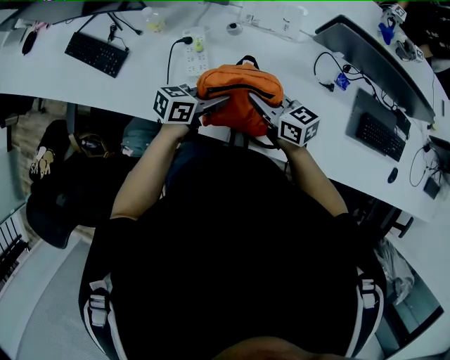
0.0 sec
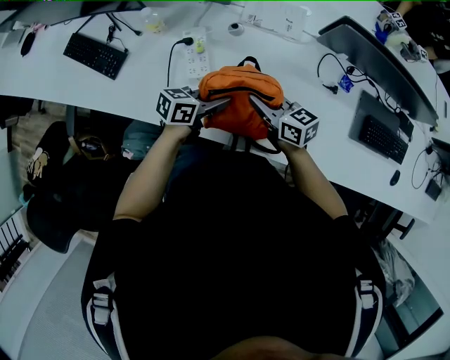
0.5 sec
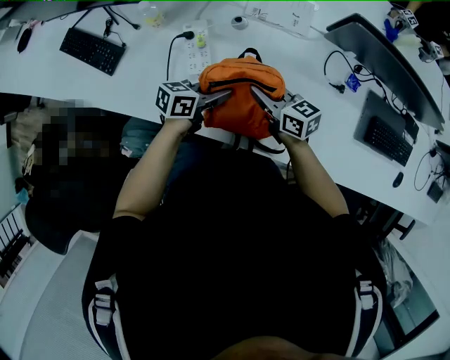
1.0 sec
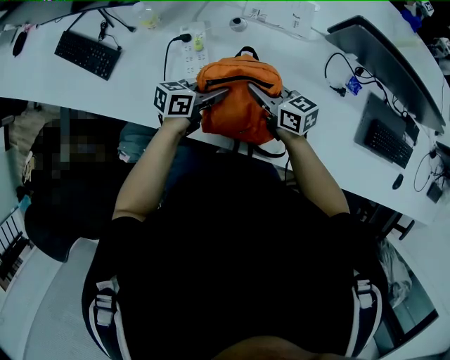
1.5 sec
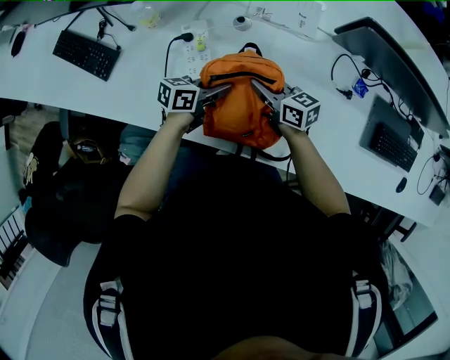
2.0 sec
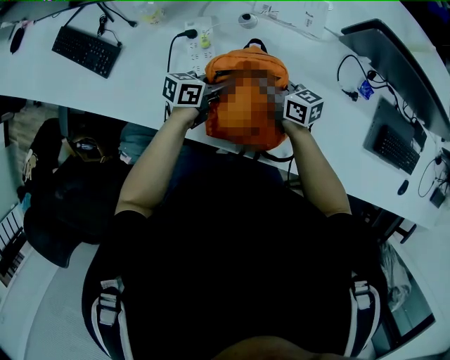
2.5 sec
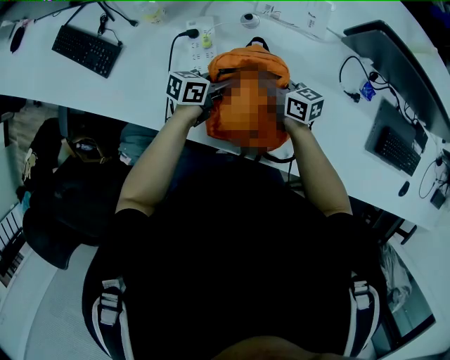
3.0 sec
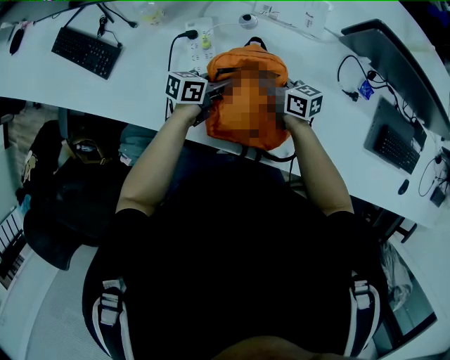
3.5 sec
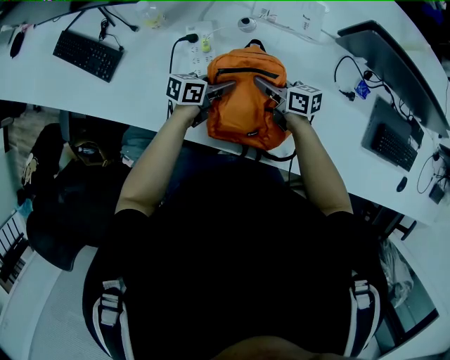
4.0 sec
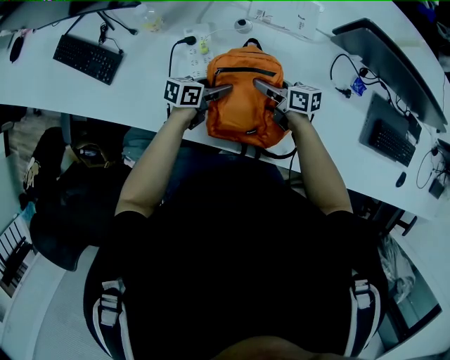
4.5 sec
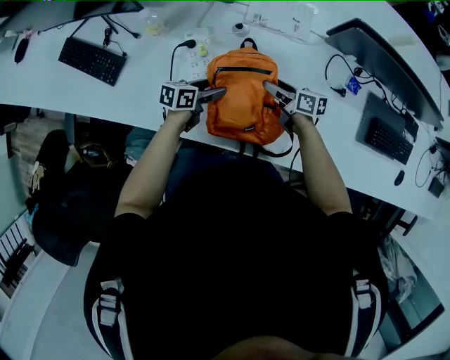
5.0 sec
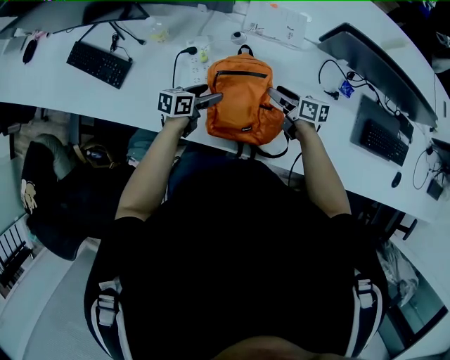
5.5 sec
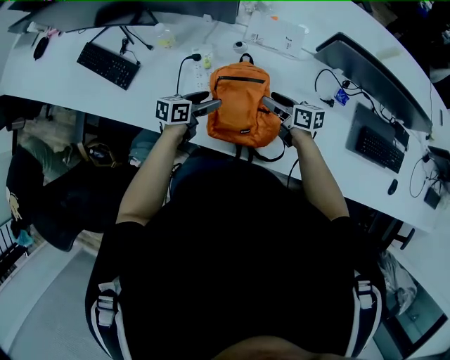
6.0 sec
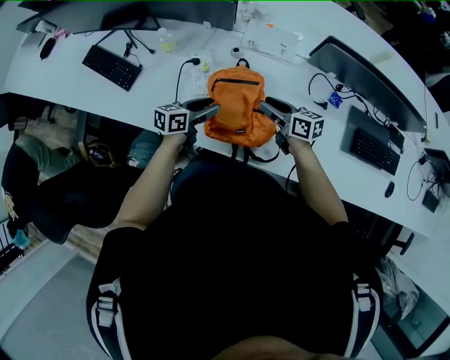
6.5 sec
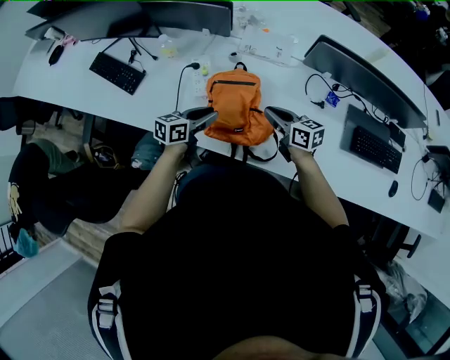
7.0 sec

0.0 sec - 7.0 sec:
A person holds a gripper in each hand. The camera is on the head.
0.0 sec - 2.0 sec: The two grippers go roughly 10 cm downward.
2.0 sec - 3.5 sec: The right gripper shifts by some 5 cm.
3.5 sec - 5.0 sec: The left gripper opens up, while the right gripper shifts by approximately 5 cm, and opens up.
5.0 sec - 7.0 sec: Both grippers move upward and backward, approximately 20 cm. The right gripper turns by about 20 degrees, and closes its fingers. The left gripper closes up.

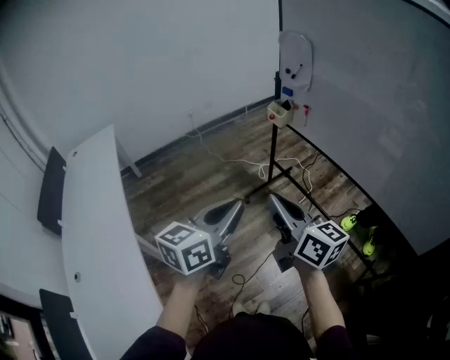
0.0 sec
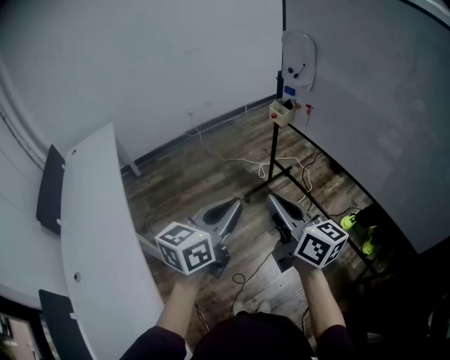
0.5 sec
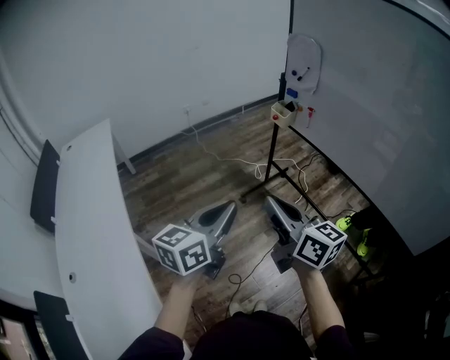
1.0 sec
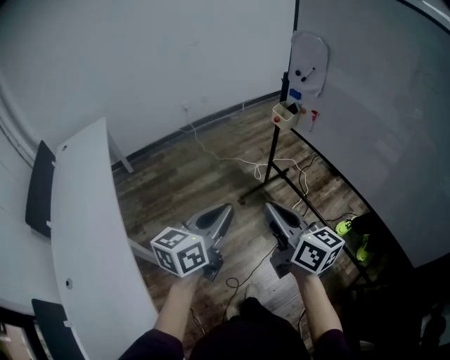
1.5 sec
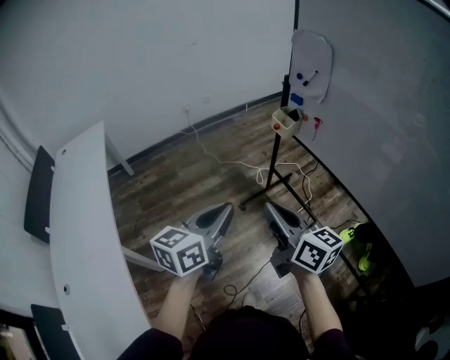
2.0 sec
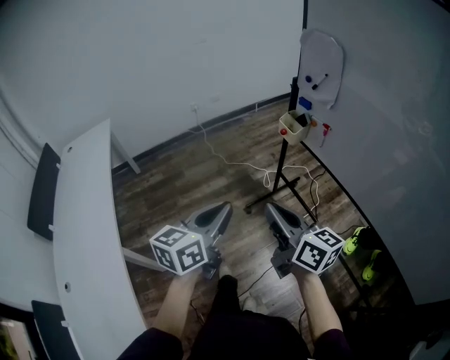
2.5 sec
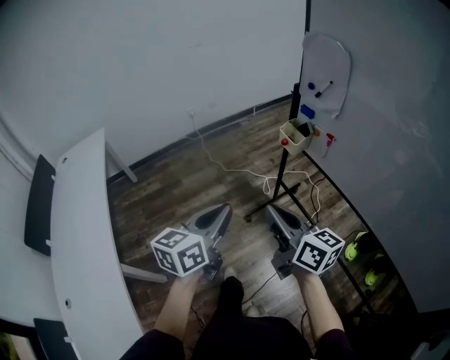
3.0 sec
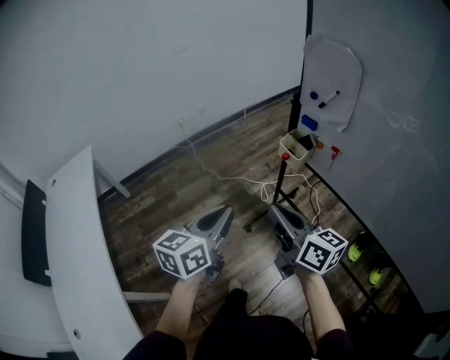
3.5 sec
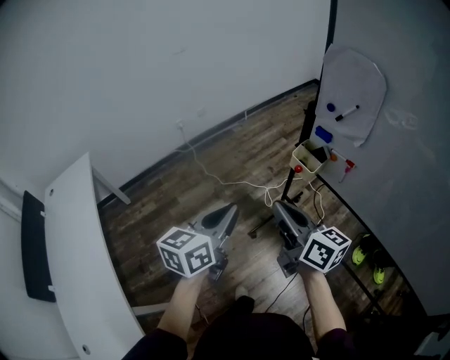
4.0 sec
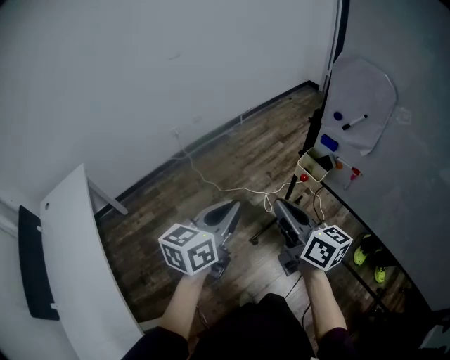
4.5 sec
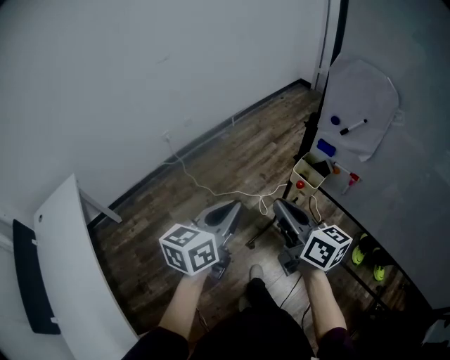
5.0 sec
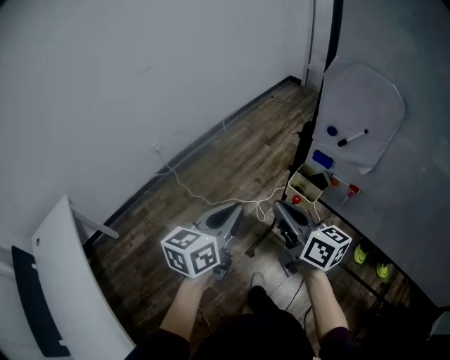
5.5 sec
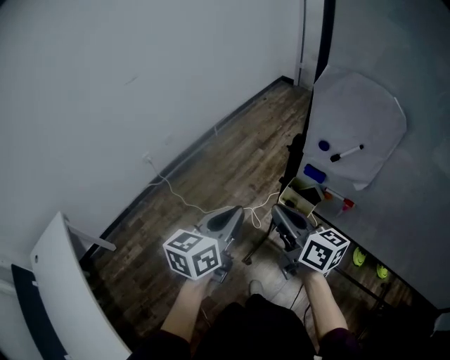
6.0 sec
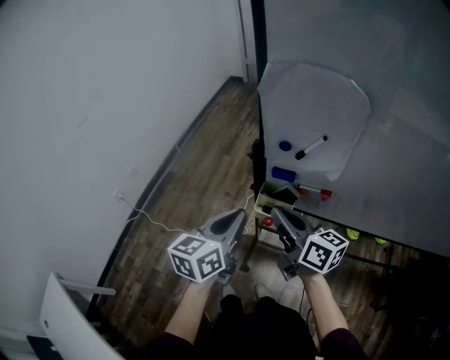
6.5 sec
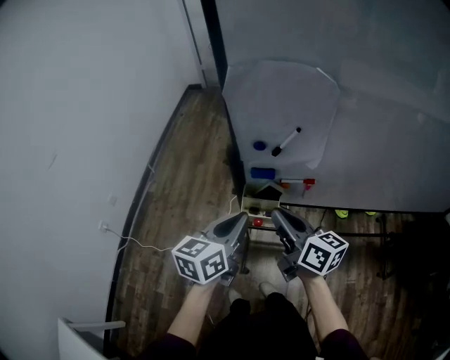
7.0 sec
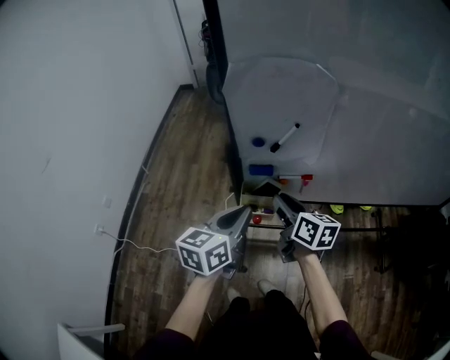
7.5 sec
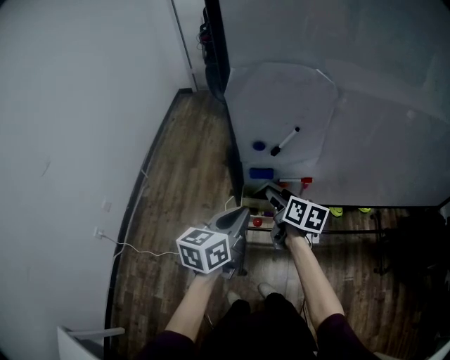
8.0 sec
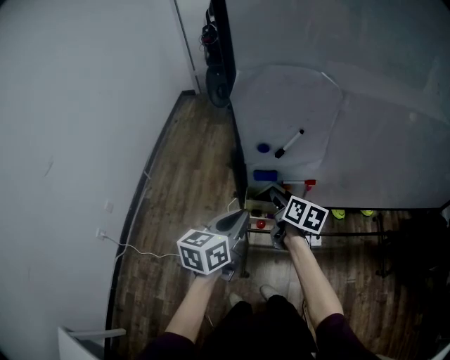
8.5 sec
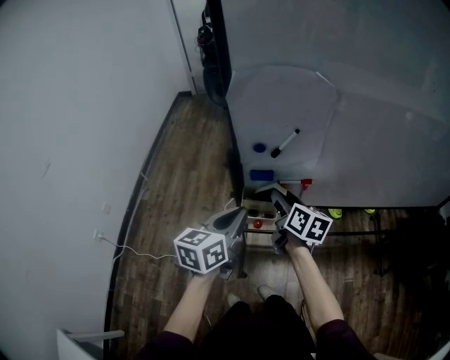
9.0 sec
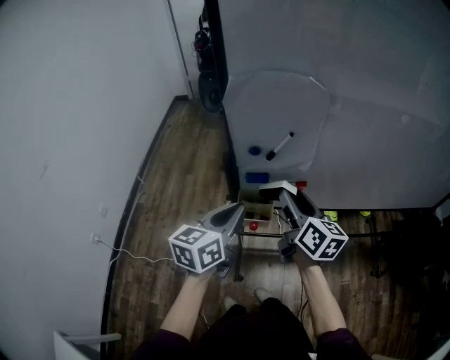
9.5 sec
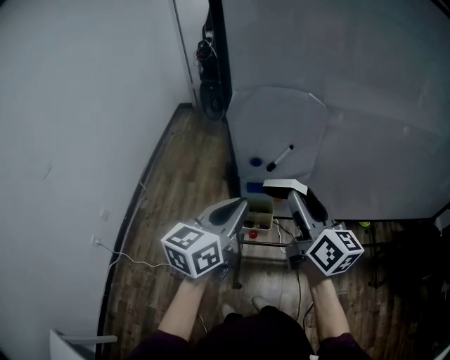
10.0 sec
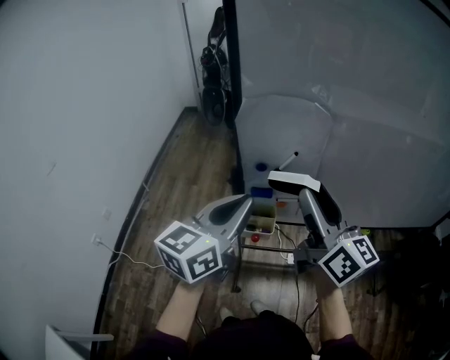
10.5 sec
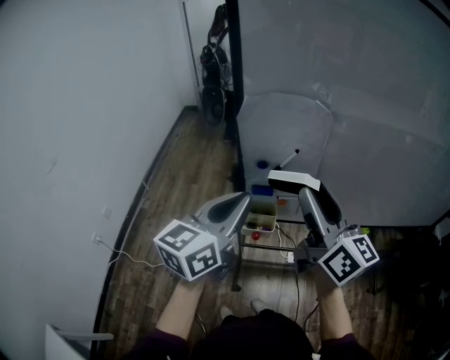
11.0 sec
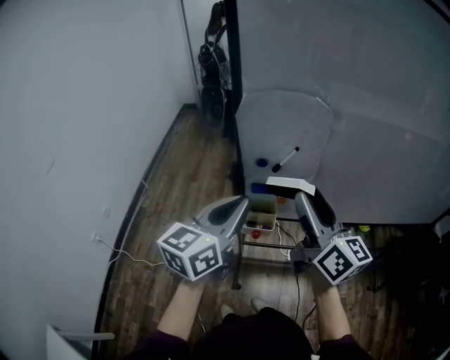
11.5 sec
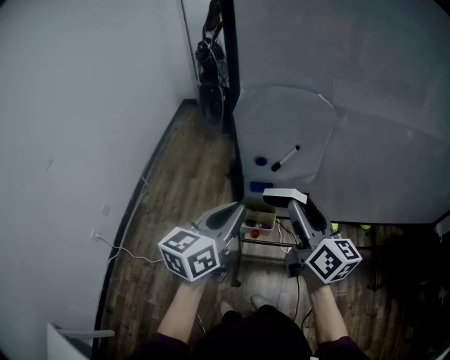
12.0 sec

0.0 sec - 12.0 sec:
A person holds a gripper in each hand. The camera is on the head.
0.0 sec - 2.0 sec: Both grippers travel together forward, roughly 15 cm.
2.0 sec - 4.0 sec: Both grippers travel together forward, about 30 cm.
4.0 sec - 6.0 sec: The grippers both shift forward by some 25 cm.
6.0 sec - 8.0 sec: The left gripper ends up roughly 15 cm from where it was, and rotates roughly 30 degrees, while the right gripper shifts by approximately 20 cm, swivels approximately 50 degrees, and opens its fingers.
8.0 sec - 10.0 sec: The right gripper is displaced upward by about 20 cm, and changes its angle by roughly 30 degrees. The left gripper shifts some 10 cm upward.
10.0 sec - 12.0 sec: The right gripper moves about 10 cm upward and comes back.

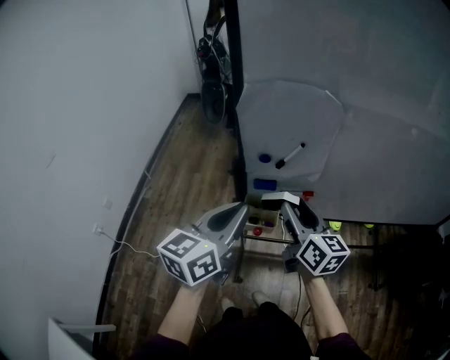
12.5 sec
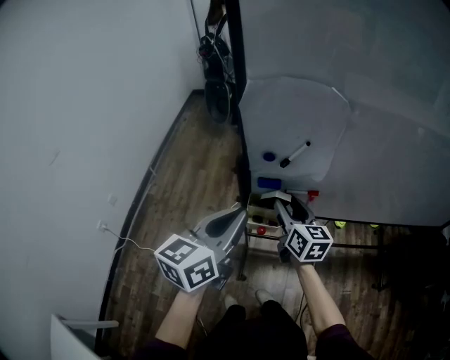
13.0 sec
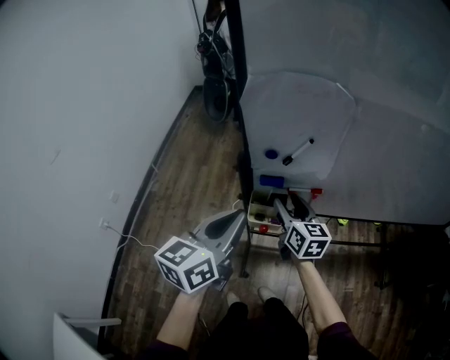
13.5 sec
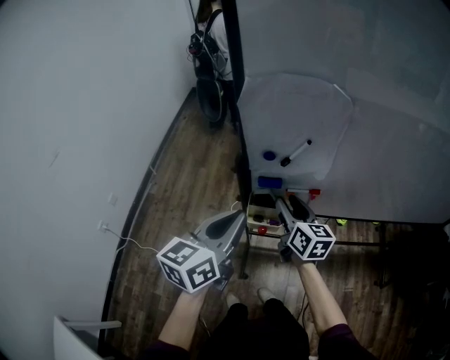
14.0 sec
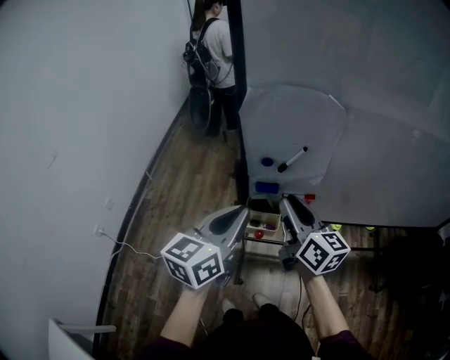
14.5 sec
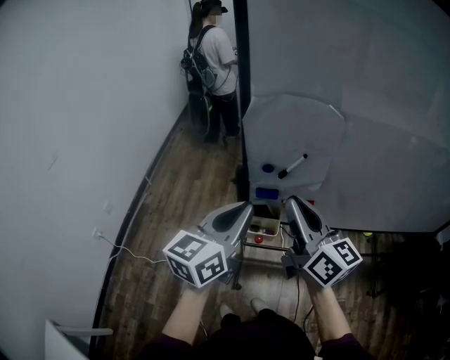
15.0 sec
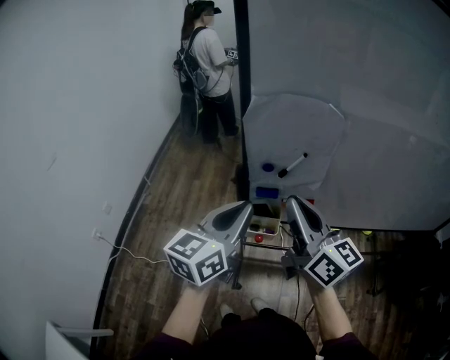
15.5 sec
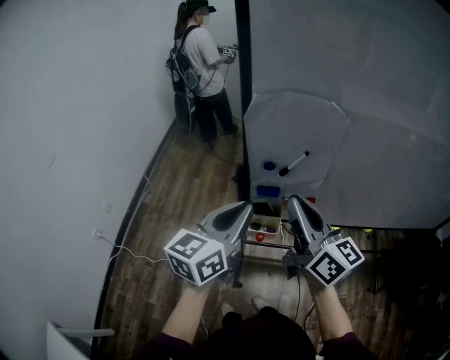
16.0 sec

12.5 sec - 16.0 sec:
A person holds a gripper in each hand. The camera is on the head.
12.5 sec - 14.5 sec: The right gripper moves roughly 10 cm downward and comes back, and closes up.
14.5 sec - 16.0 sec: The right gripper shifts approximately 10 cm upward.

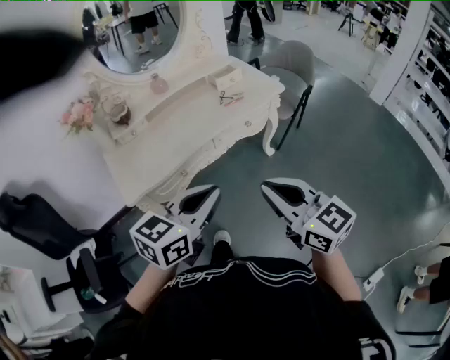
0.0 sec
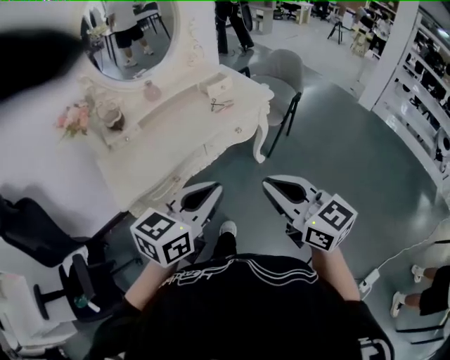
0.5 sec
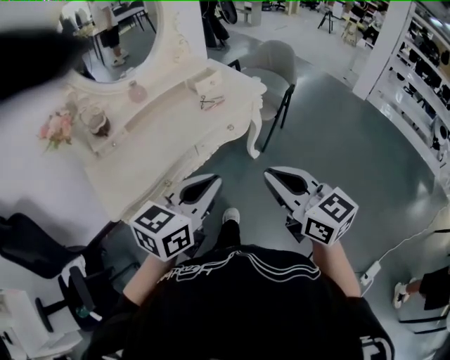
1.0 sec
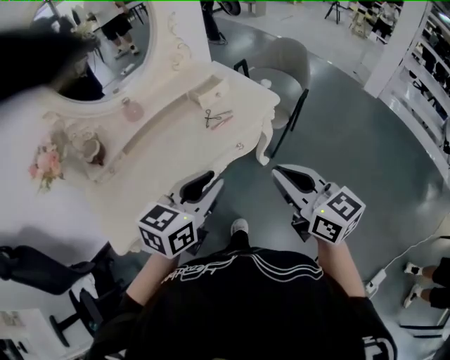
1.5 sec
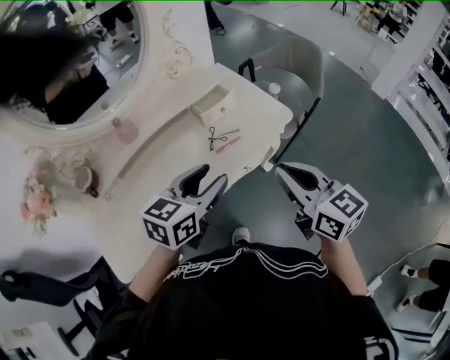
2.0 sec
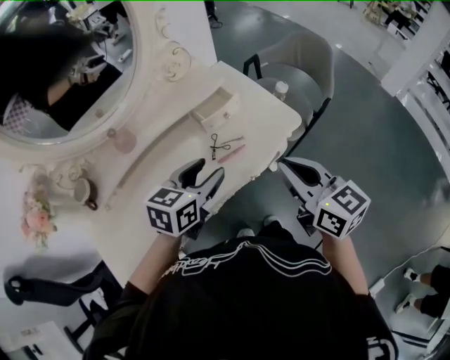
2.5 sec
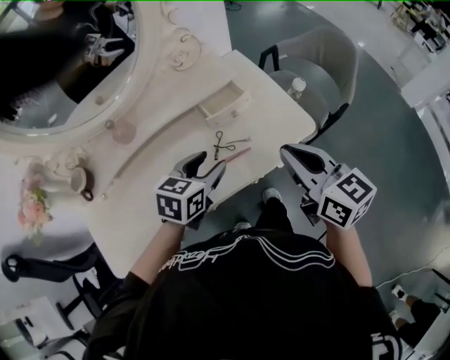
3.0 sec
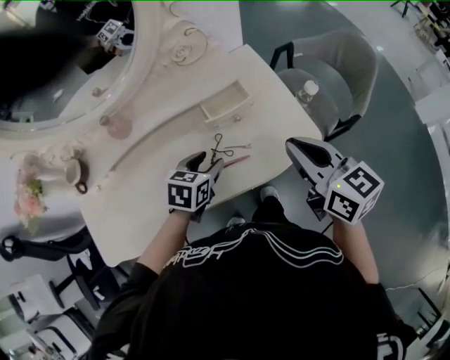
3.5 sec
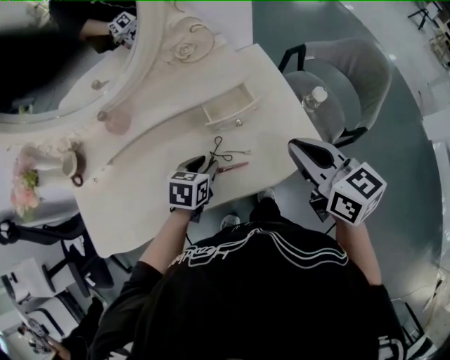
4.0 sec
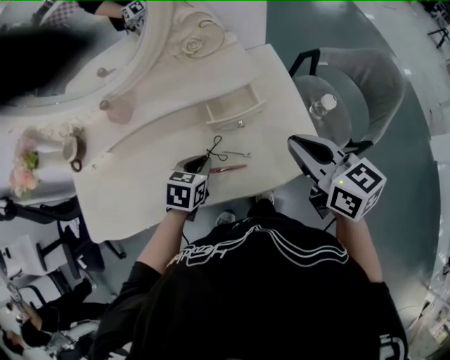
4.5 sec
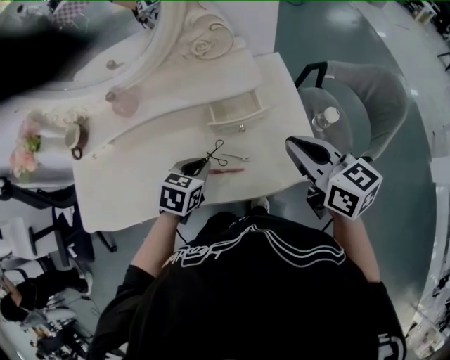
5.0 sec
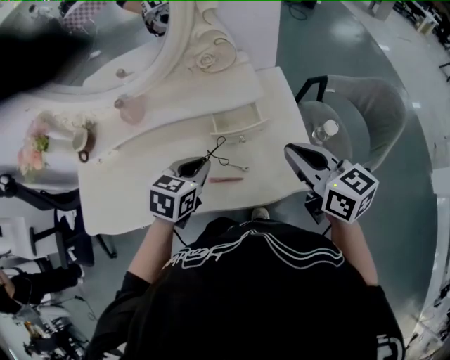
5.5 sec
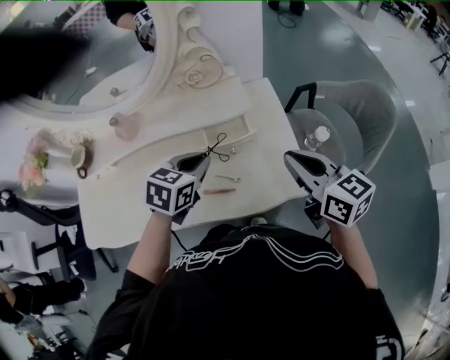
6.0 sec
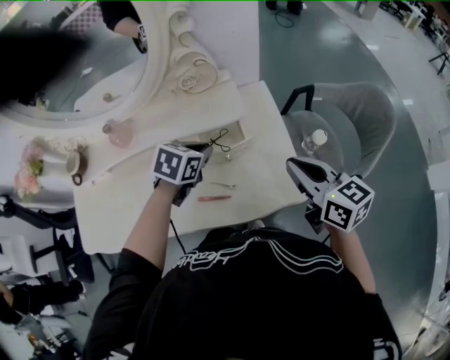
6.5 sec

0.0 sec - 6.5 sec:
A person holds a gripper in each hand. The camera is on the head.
0.0 sec - 2.0 sec: The two grippers go about 35 cm forward. The left gripper opens.
2.0 sec - 4.5 sec: The left gripper goes some 20 cm downward, tilts its fingers approximately 30 degrees downward, and closes its fingers. Meanwhile the right gripper shifts by approximately 30 cm, and rotates approximately 30 degrees.
4.5 sec - 6.5 sec: The left gripper moves forward, upward and to the right, approximately 15 cm. Meanwhile the right gripper moves to the right, roughly 5 cm.
